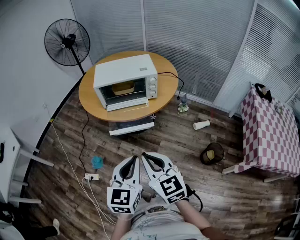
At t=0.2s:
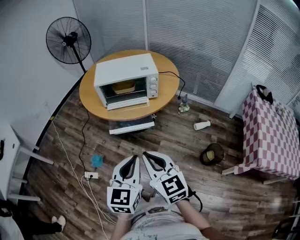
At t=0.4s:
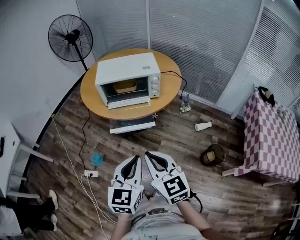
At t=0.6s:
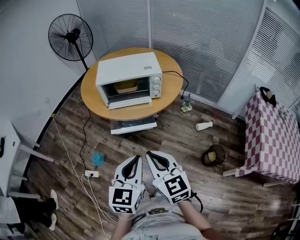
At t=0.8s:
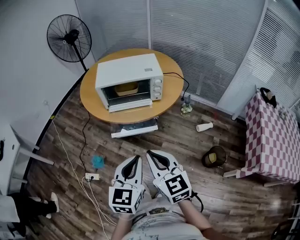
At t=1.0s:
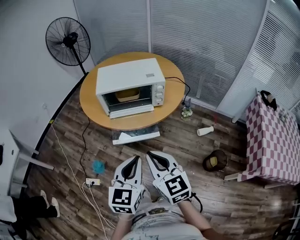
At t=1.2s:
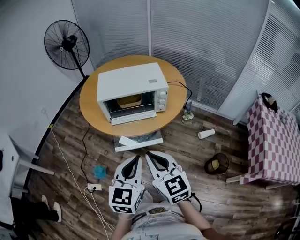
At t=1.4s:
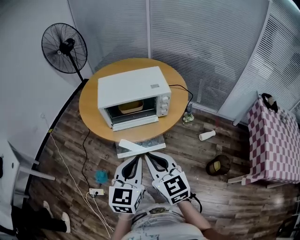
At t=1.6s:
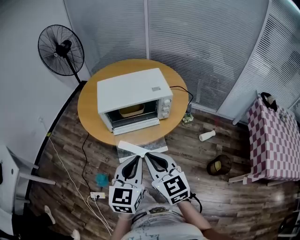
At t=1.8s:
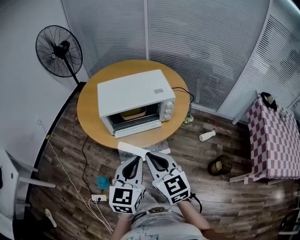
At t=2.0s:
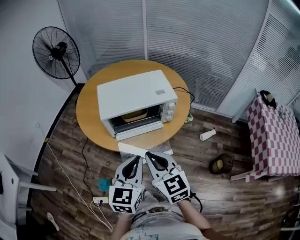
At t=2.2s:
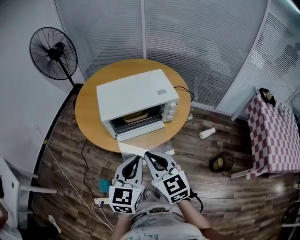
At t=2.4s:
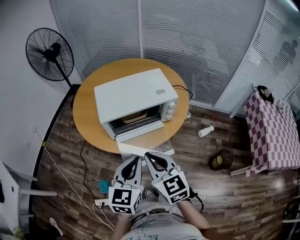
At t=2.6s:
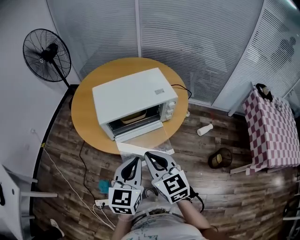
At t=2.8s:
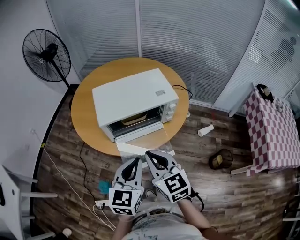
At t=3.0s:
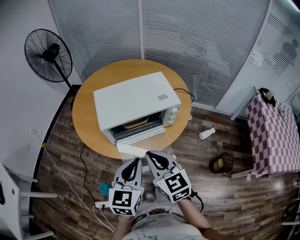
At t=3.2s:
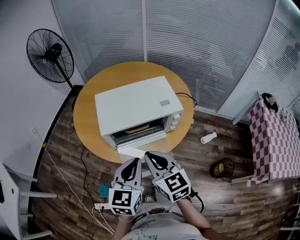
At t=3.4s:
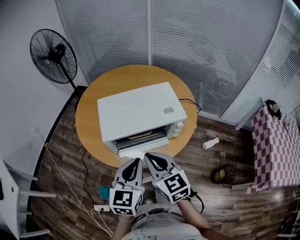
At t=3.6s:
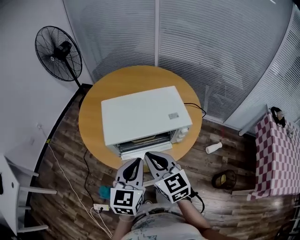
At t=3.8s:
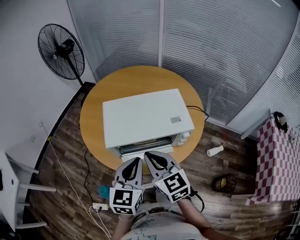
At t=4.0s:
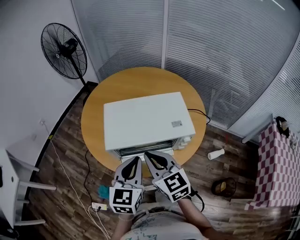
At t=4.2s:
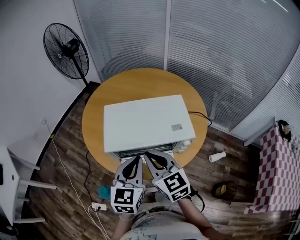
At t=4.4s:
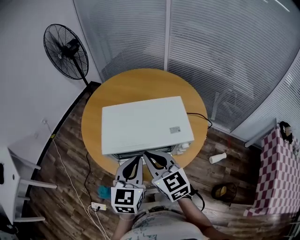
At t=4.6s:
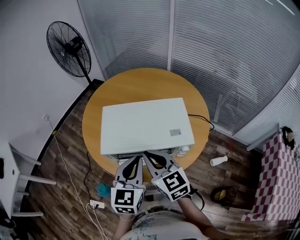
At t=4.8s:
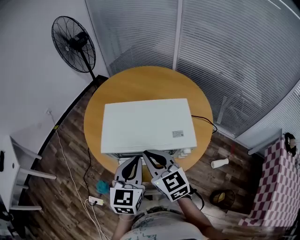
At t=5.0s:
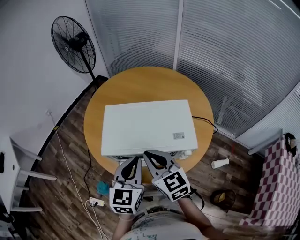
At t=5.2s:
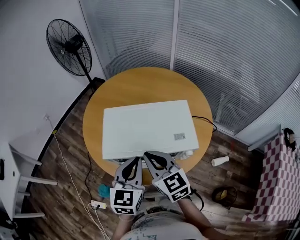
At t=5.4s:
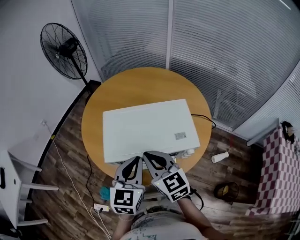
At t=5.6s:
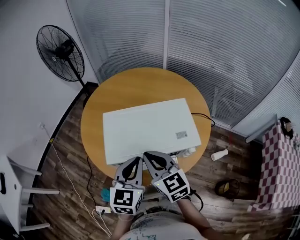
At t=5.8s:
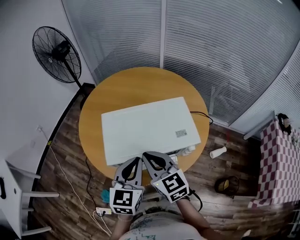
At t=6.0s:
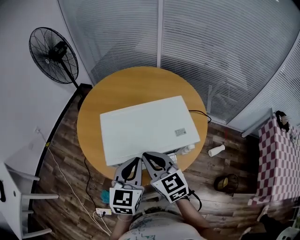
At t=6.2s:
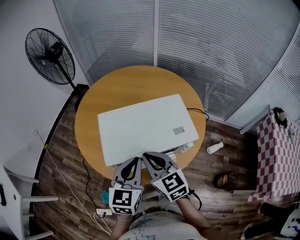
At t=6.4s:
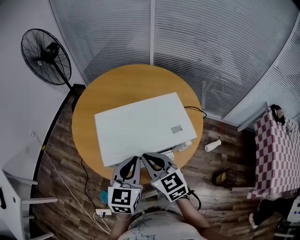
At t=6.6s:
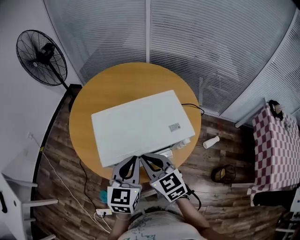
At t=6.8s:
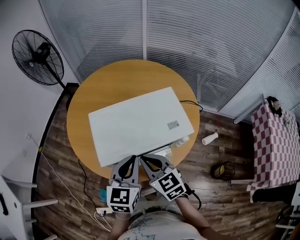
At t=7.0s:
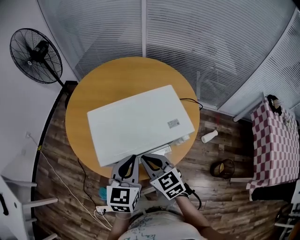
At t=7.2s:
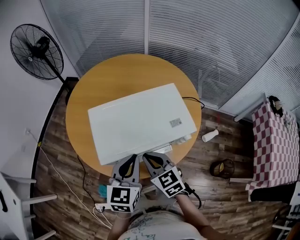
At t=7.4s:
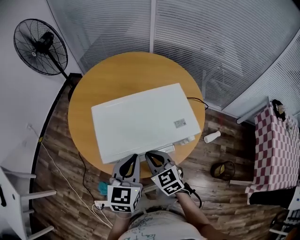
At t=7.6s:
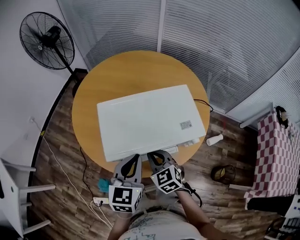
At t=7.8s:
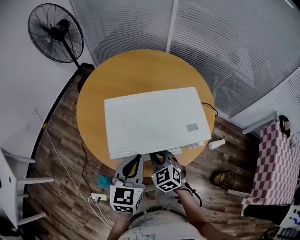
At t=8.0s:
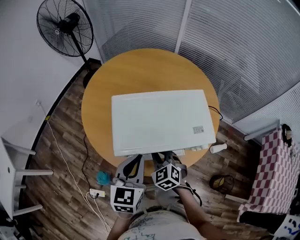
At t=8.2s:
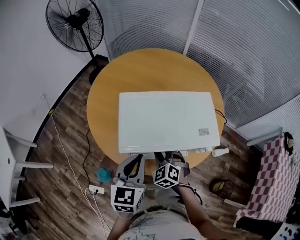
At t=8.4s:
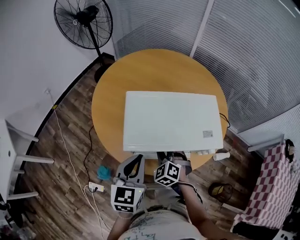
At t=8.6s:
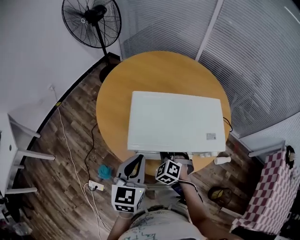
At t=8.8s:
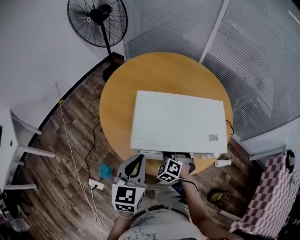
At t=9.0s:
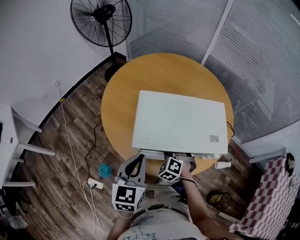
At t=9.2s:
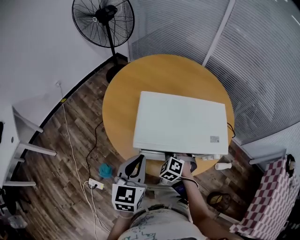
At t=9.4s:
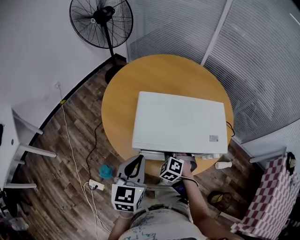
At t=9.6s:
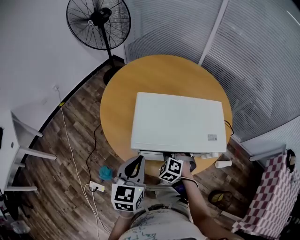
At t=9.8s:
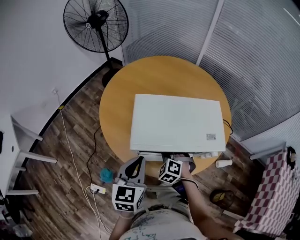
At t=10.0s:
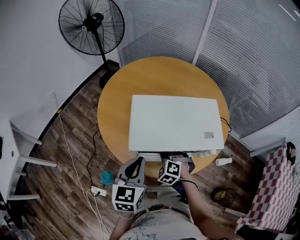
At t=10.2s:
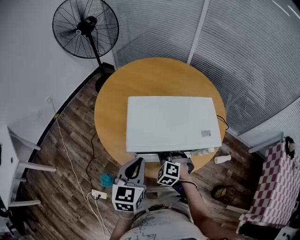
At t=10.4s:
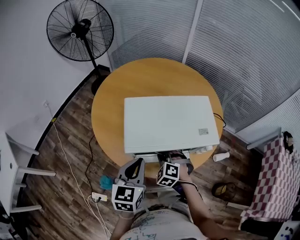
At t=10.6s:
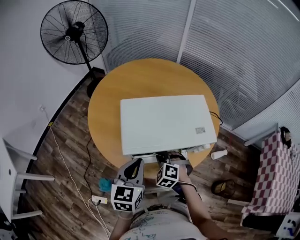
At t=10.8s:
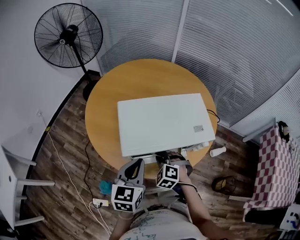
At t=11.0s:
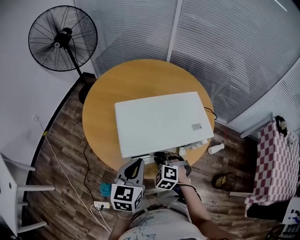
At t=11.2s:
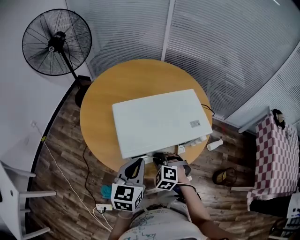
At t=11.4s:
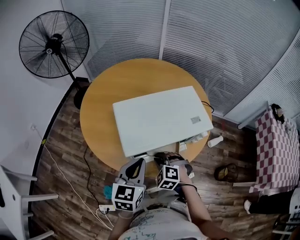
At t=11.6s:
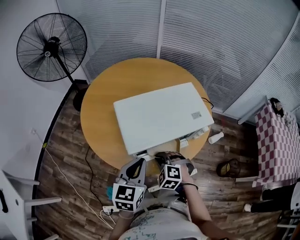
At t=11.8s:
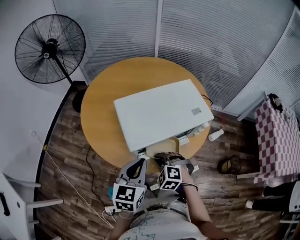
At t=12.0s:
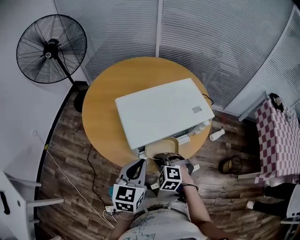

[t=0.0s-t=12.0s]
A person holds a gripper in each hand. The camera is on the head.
t=0.0s to t=1.6s: Both grippers move forward, about 20 cm.
t=1.6s to t=3.0s: The two grippers go about 10 cm forward.
t=3.0s to t=4.4s: Both grippers move forward, roughly 15 cm.
t=4.4s to t=6.0s: The left gripper shifts by about 5 cm, while the right gripper changes place by about 5 cm.
t=6.0s to t=7.6s: The right gripper goes about 15 cm downward, and changes its angle by roughly 20 degrees.
t=7.6s to t=9.0s: The left gripper shifts some 10 cm to the left, while the right gripper travels downward by roughly 10 cm, and rolls counterclockwise, seen from behind, by about 40 degrees.
t=9.0s to t=10.4s: The grippers move only a little.
t=10.4s to t=12.0s: The right gripper heads backward, covering approximately 5 cm.

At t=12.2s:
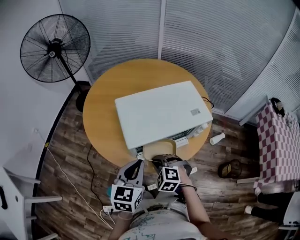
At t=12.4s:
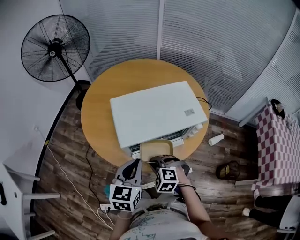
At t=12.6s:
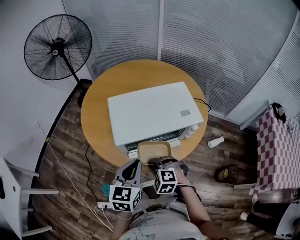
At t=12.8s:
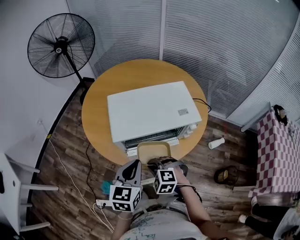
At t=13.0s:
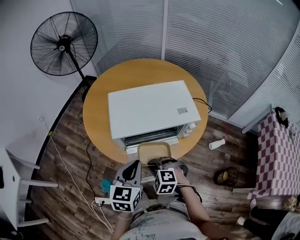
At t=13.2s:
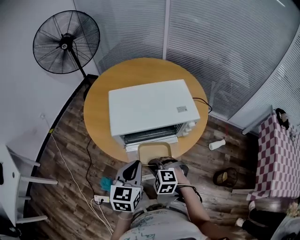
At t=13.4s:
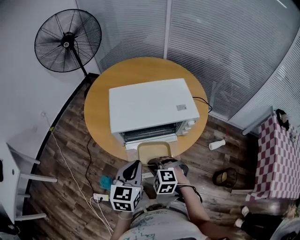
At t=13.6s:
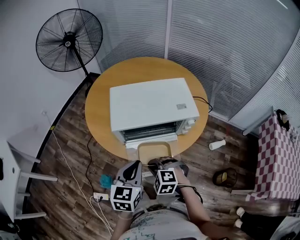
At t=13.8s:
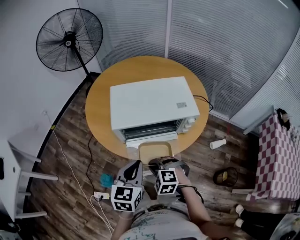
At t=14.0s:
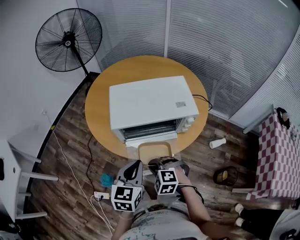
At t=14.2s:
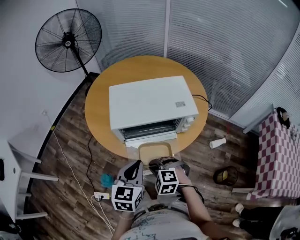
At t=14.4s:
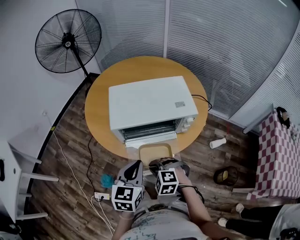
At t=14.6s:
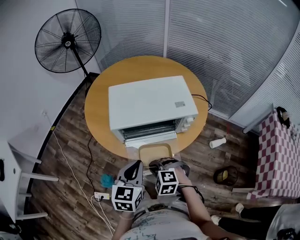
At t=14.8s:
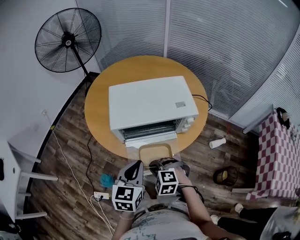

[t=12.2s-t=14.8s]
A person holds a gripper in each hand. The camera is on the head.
t=12.2s to t=13.4s: The left gripper shifts roughly 10 cm backward and to the right, while the right gripper moves backward, about 10 cm.
t=13.4s to t=14.8s: The grippers stay close to where they were, moving slightly.

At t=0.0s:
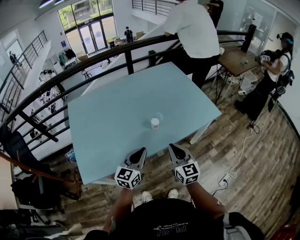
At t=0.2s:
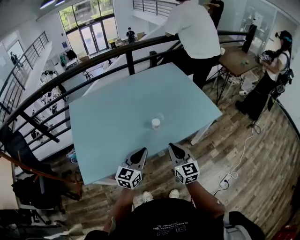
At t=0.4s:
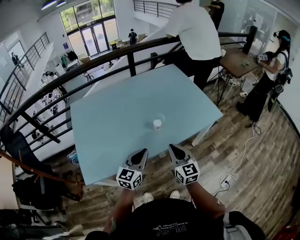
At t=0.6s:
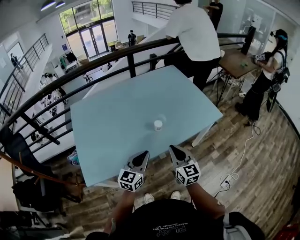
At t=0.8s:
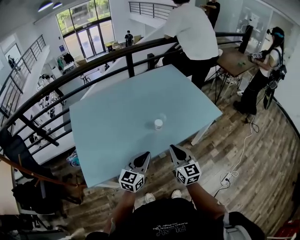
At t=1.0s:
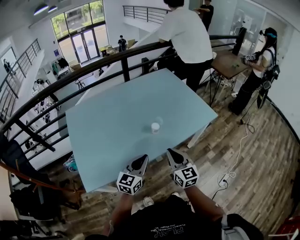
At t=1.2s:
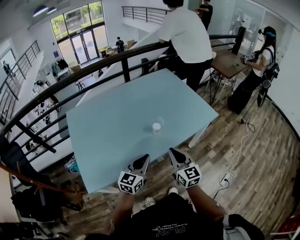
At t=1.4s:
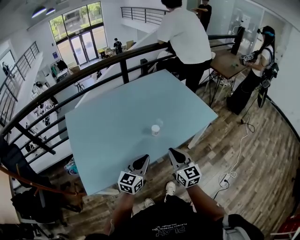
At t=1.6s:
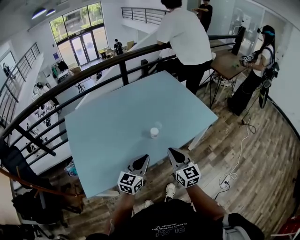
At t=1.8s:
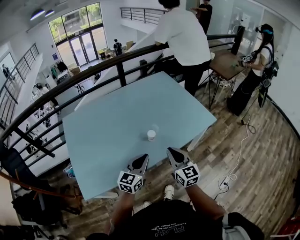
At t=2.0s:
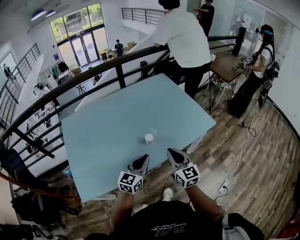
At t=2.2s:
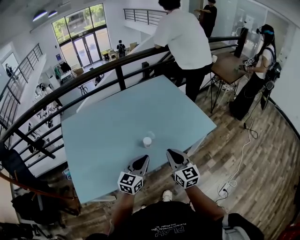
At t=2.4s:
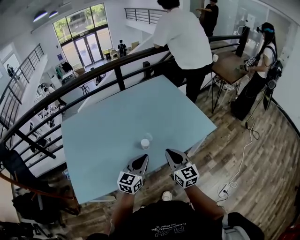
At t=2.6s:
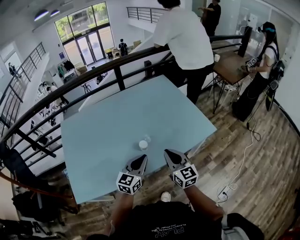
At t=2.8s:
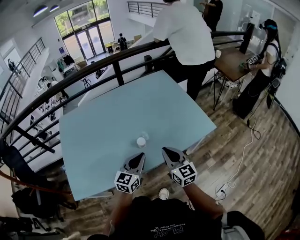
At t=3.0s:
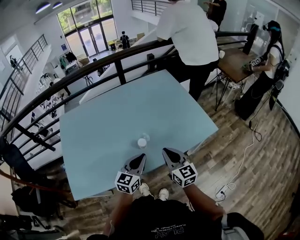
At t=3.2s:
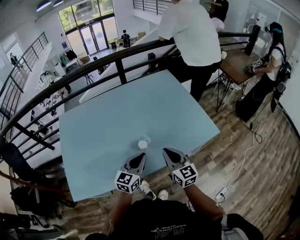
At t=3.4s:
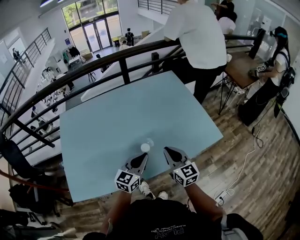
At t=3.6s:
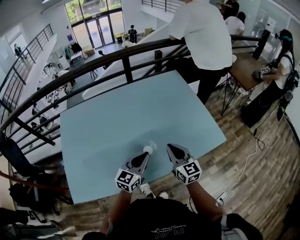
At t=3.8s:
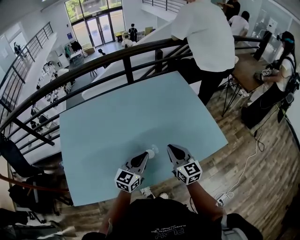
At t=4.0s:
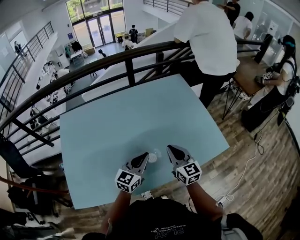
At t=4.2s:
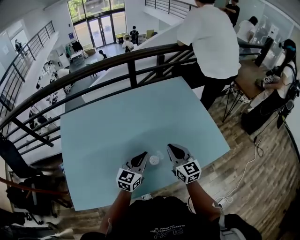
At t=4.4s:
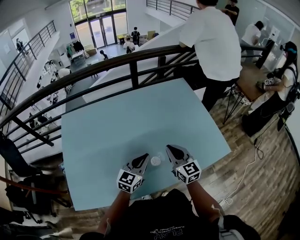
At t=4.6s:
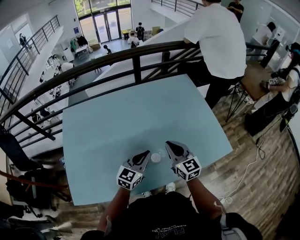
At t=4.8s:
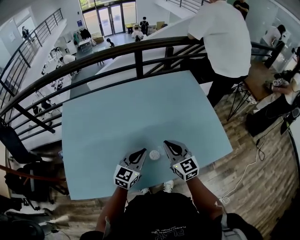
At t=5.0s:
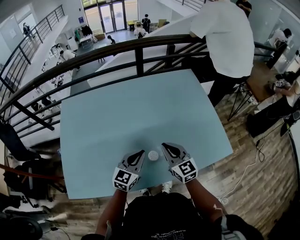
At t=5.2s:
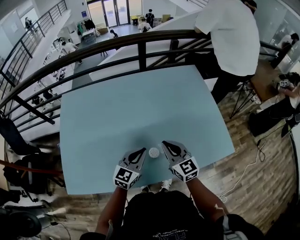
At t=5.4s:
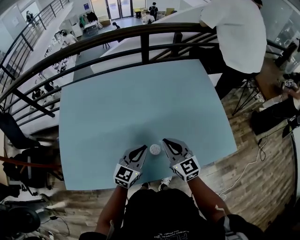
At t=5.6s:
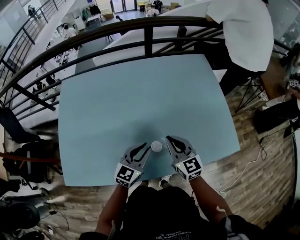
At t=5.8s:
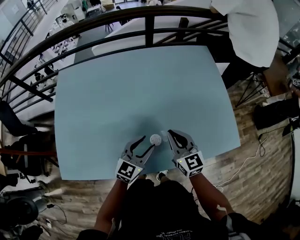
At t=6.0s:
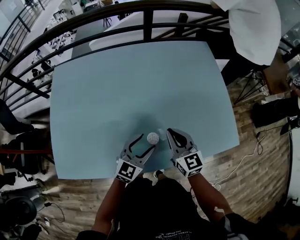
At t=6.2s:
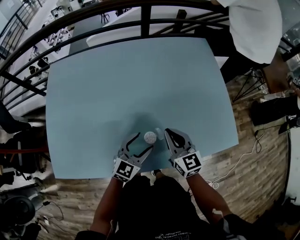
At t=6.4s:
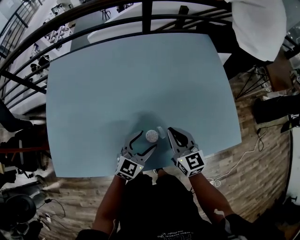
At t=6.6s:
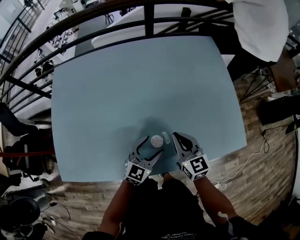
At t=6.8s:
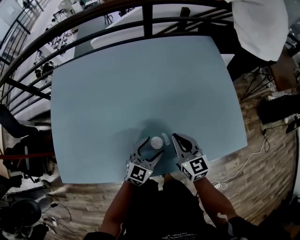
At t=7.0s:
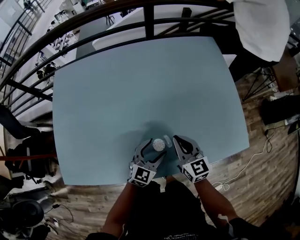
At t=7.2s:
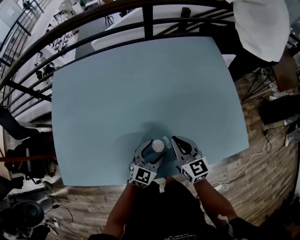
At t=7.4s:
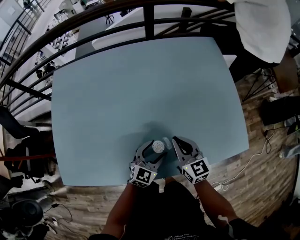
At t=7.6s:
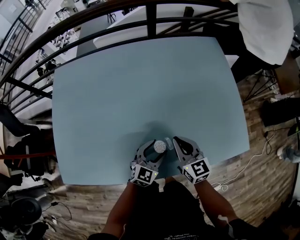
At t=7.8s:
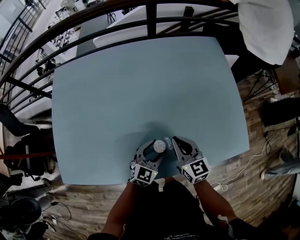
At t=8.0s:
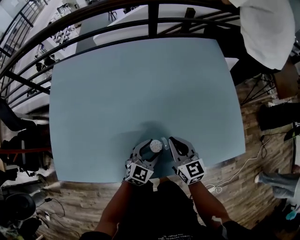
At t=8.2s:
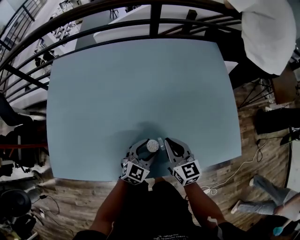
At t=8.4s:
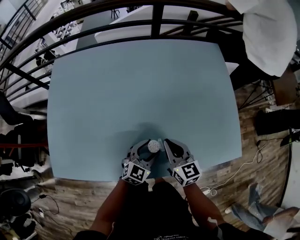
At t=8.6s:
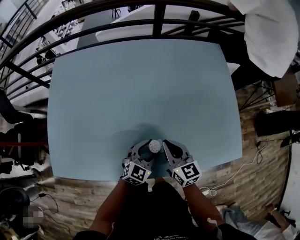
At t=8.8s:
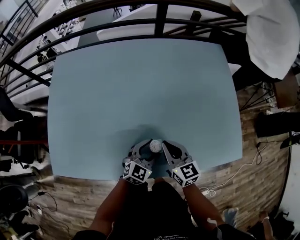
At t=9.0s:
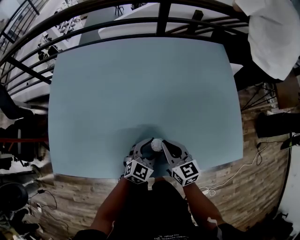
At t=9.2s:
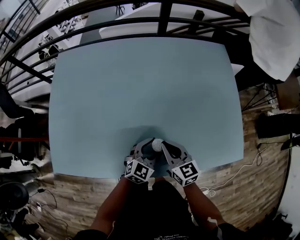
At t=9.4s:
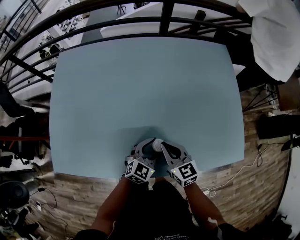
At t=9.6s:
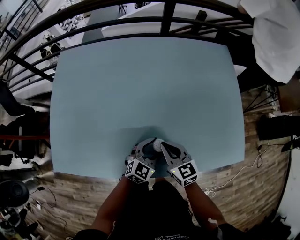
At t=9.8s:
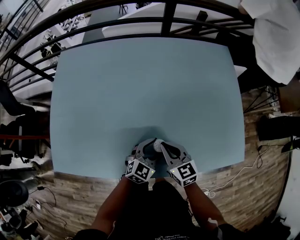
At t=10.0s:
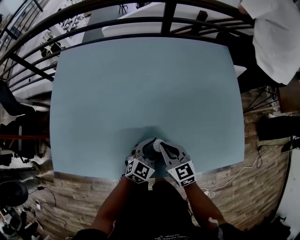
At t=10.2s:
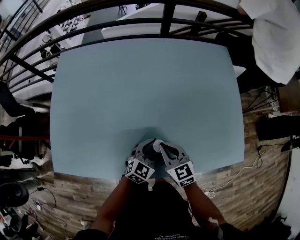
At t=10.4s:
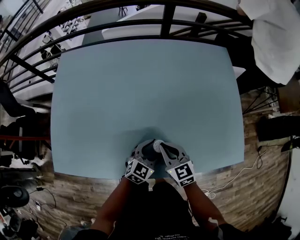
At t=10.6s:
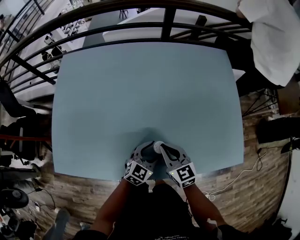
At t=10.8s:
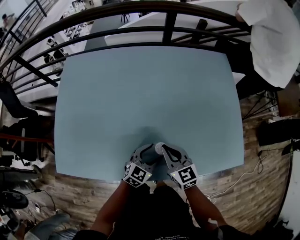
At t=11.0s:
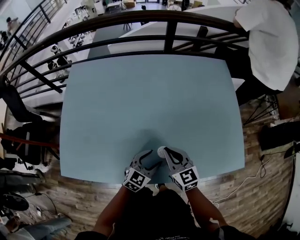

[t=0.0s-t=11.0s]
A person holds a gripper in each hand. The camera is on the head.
t=0.0s to t=1.6s: The grippers stay close to where they were, moving slightly.
t=1.6s to t=3.2s: Both grippers travel together forward and to the right, some 15 cm.
t=3.2s to t=4.8s: Both grippers move forward and to the left, approximately 15 cm.
t=4.8s to t=6.2s: Both grippers travel together downward, about 10 cm. The left gripper opens its fingers.
t=6.2s to t=7.8s: The left gripper goes roughly 5 cm downward.
t=7.8s to t=9.4s: The right gripper ends up roughly 5 cm from where it was.
t=9.4s to t=11.0s: The grippers stay close to where they were, moving slightly.
